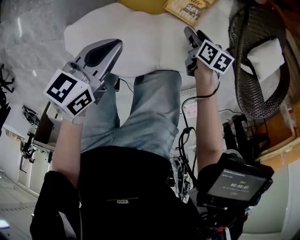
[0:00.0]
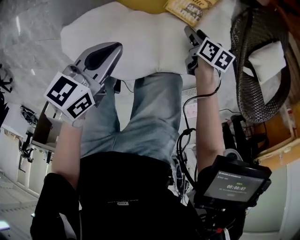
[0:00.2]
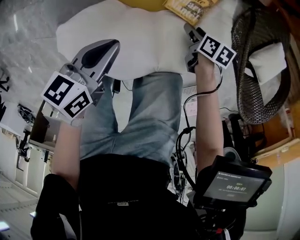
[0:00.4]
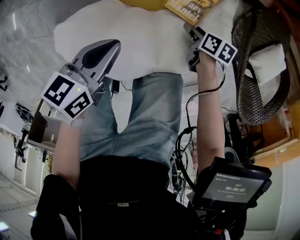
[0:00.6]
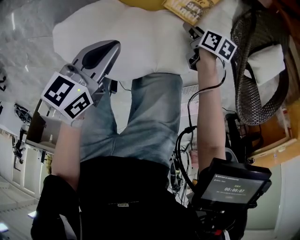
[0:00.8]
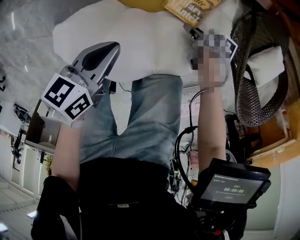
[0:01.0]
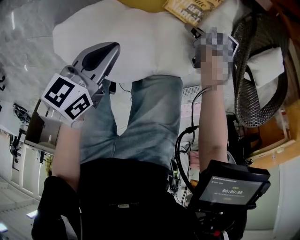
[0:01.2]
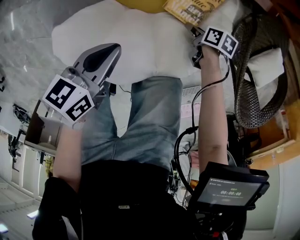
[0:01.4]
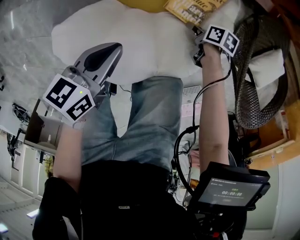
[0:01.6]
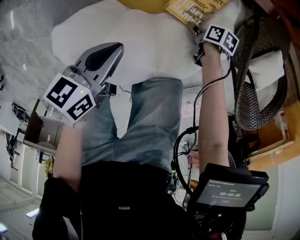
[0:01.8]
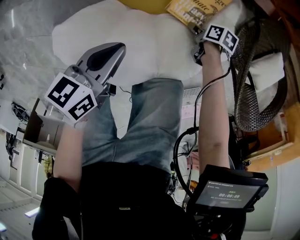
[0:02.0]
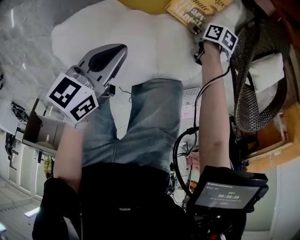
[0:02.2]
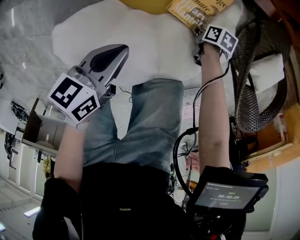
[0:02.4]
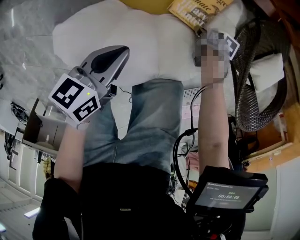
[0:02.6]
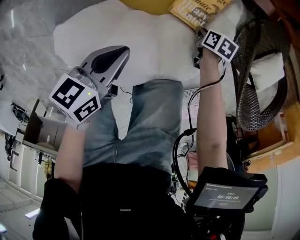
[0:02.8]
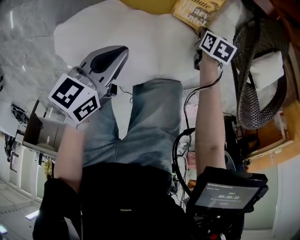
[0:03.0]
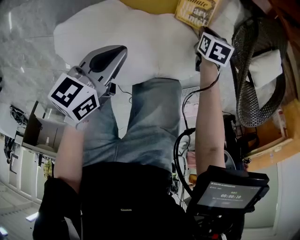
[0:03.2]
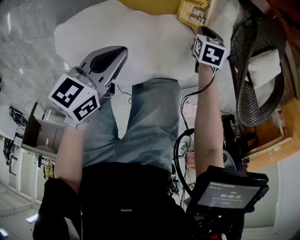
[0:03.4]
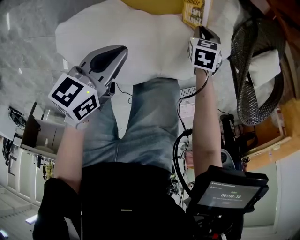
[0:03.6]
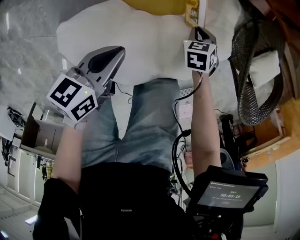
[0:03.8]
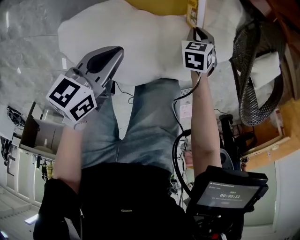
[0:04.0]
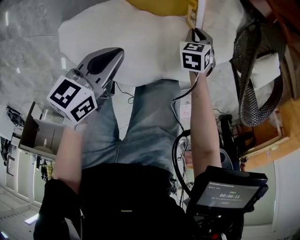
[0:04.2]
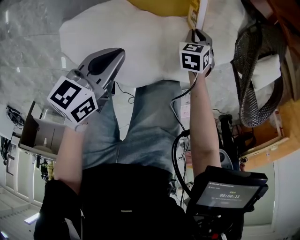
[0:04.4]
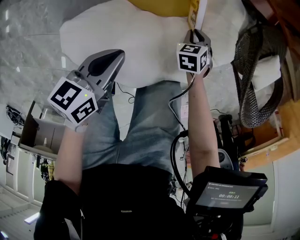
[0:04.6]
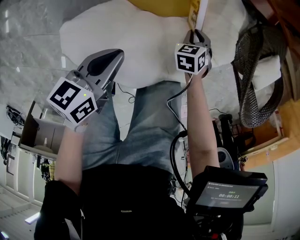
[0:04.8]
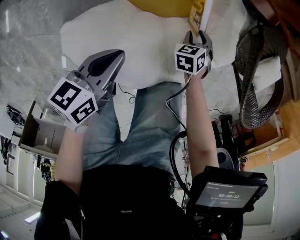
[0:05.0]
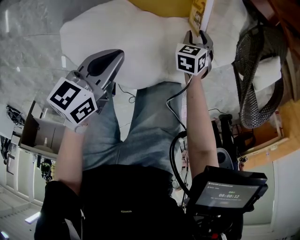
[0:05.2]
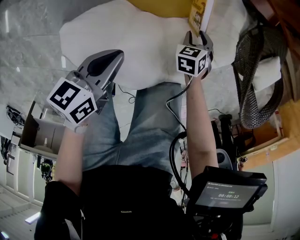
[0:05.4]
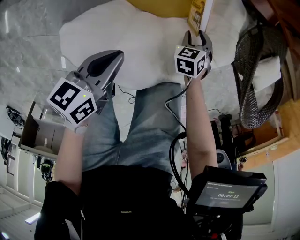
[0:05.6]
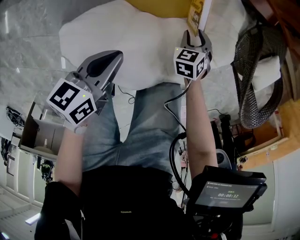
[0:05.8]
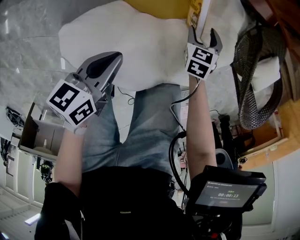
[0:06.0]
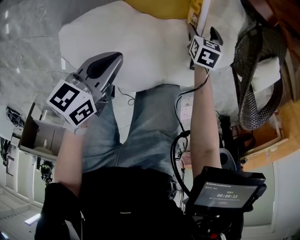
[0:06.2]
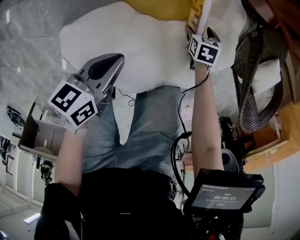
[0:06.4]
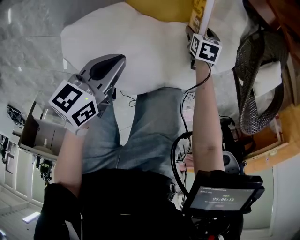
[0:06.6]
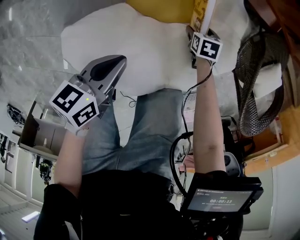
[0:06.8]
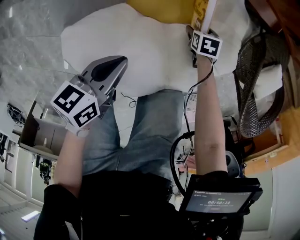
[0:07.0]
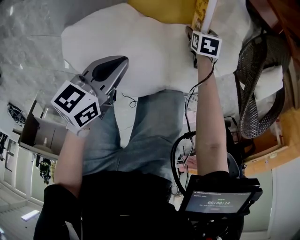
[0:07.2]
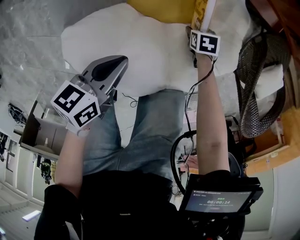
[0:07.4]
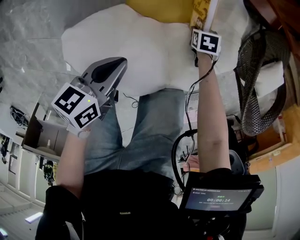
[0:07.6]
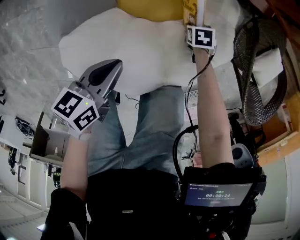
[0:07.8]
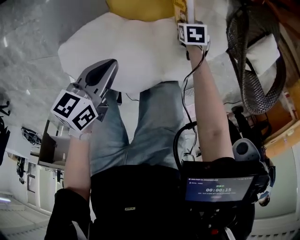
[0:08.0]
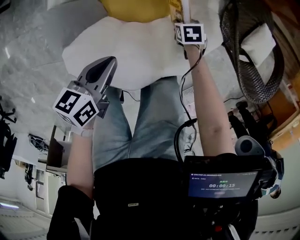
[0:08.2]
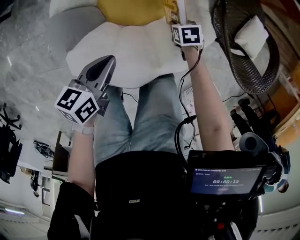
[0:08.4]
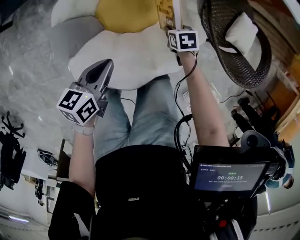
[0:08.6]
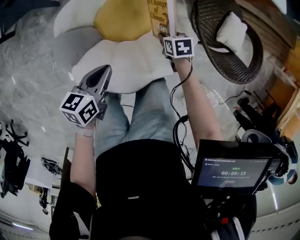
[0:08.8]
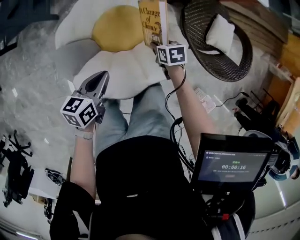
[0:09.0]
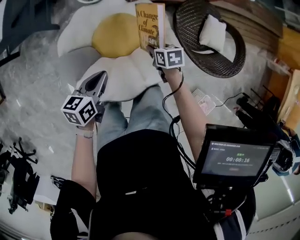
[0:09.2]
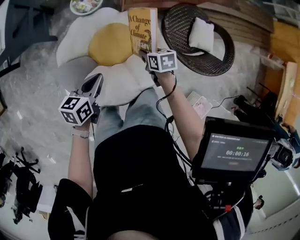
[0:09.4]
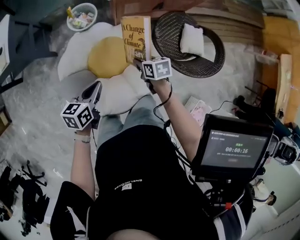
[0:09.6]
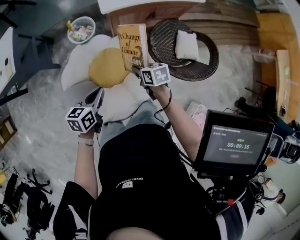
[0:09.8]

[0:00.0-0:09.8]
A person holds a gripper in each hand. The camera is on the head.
0:00.0 to 0:01.4: The left gripper shifts by about 5 cm. Meanwhile the right gripper is displaced downward by approximately 10 cm.
0:01.4 to 0:02.8: The right gripper closes its fingers.
0:02.8 to 0:04.2: The right gripper shifts by some 5 cm, and rotates around the line of its fingers by roughly 40 degrees, counterclockwise from behind.
0:04.2 to 0:05.6: There are only small adjustments of the grippers.
0:05.6 to 0:07.0: The right gripper goes approximately 5 cm downward, rotates approximately 20 degrees, and opens its fingers.
0:07.0 to 0:08.4: Both grippers travel together upward, about 10 cm. The right gripper closes.
0:08.4 to 0:09.8: The right gripper shifts about 35 cm upward, and rotates about 30 degrees, while the left gripper travels upward by some 20 cm.

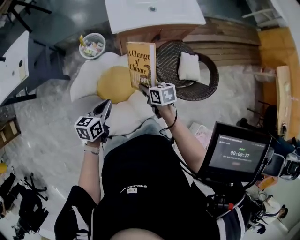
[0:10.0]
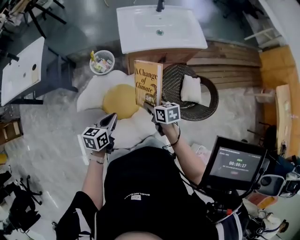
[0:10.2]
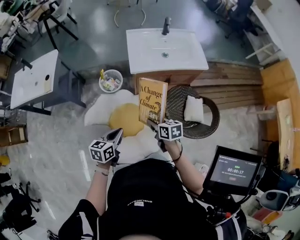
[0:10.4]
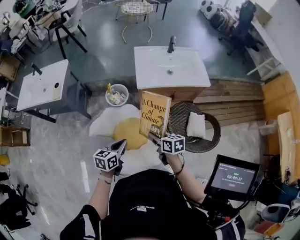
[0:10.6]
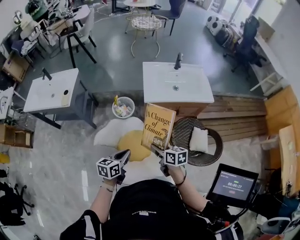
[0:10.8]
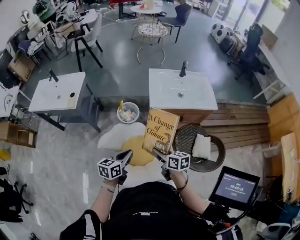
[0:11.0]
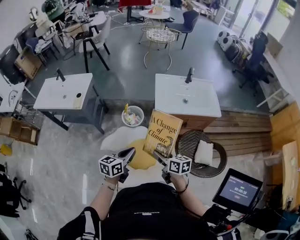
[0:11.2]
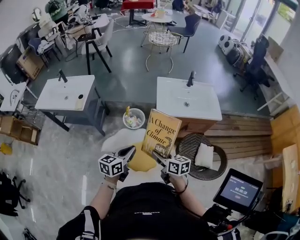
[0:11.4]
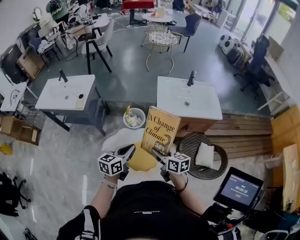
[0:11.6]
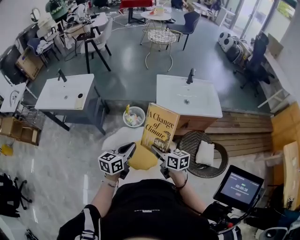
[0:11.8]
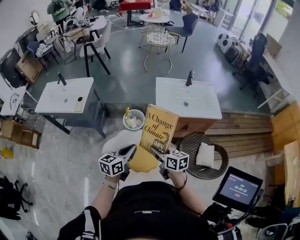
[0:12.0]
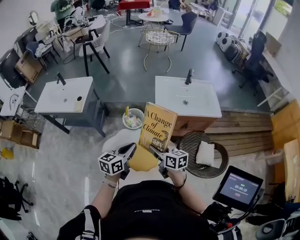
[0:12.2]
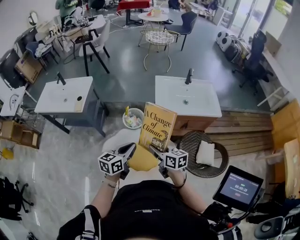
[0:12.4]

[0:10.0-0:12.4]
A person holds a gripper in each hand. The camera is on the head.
0:10.0 to 0:11.2: The right gripper heads upward and to the left, covering roughly 20 cm, and swivels some 30 degrees. The left gripper travels upward by roughly 15 cm.
0:11.2 to 0:12.4: The right gripper ends up about 5 cm from where it was.

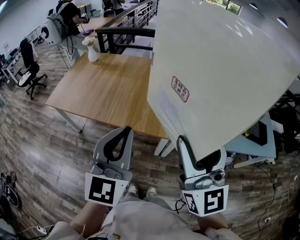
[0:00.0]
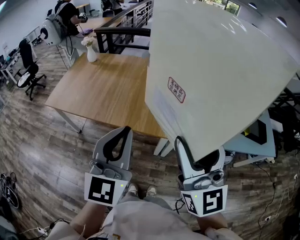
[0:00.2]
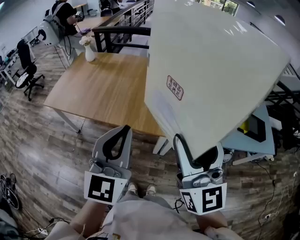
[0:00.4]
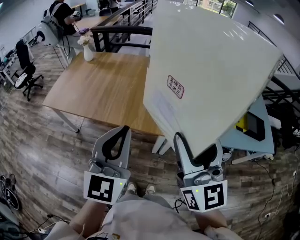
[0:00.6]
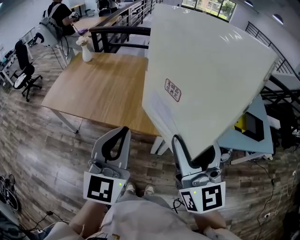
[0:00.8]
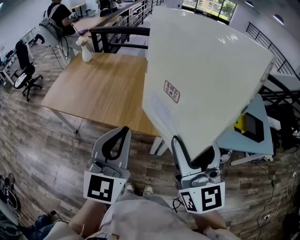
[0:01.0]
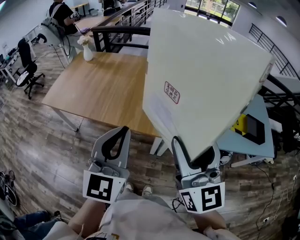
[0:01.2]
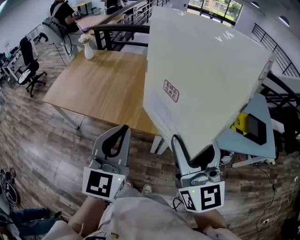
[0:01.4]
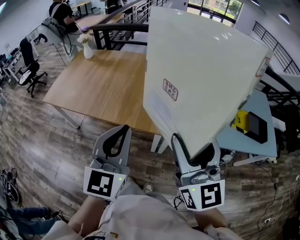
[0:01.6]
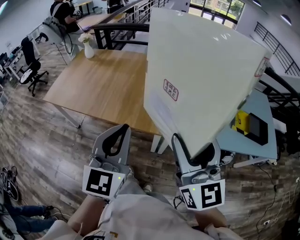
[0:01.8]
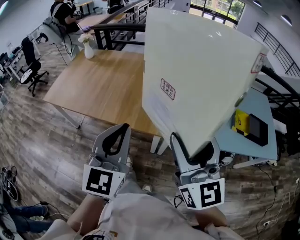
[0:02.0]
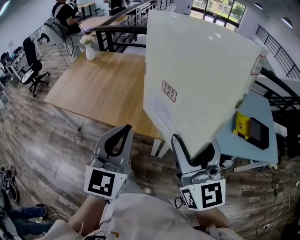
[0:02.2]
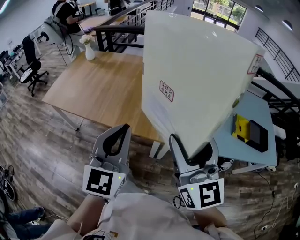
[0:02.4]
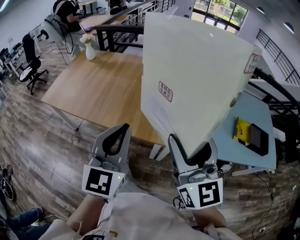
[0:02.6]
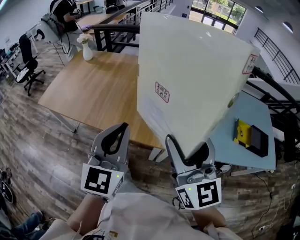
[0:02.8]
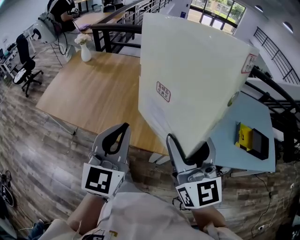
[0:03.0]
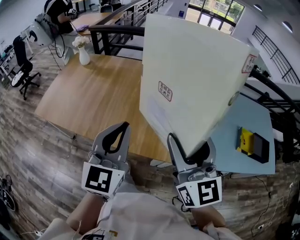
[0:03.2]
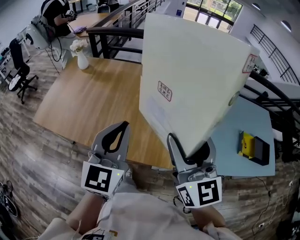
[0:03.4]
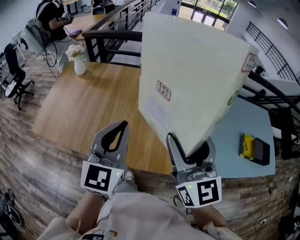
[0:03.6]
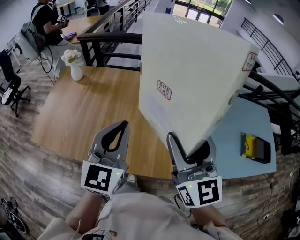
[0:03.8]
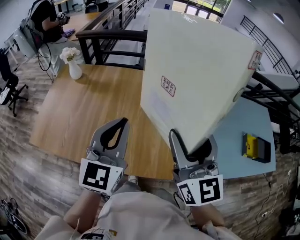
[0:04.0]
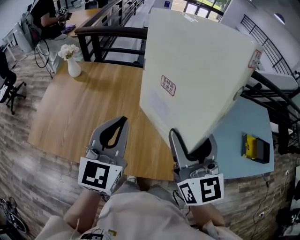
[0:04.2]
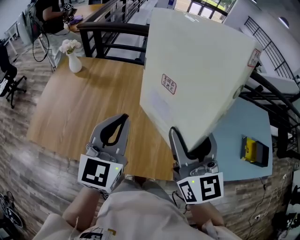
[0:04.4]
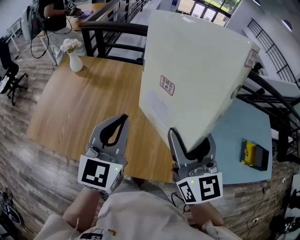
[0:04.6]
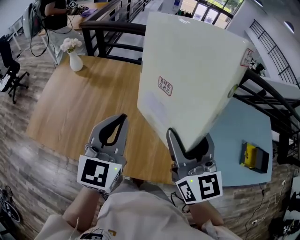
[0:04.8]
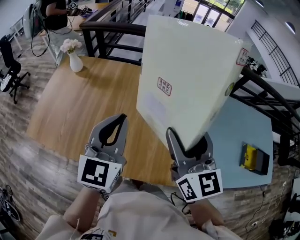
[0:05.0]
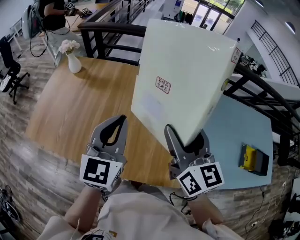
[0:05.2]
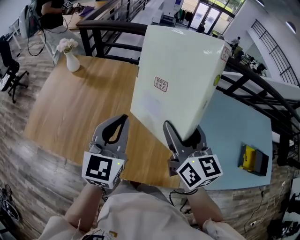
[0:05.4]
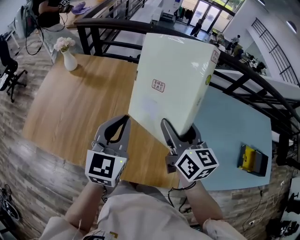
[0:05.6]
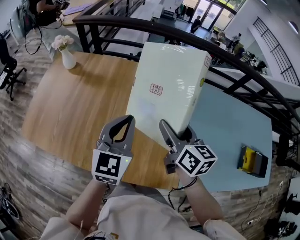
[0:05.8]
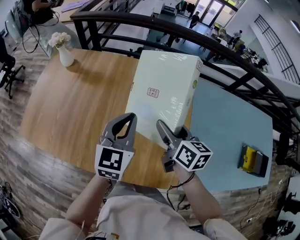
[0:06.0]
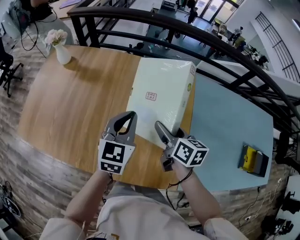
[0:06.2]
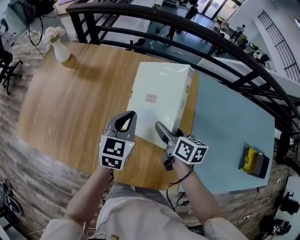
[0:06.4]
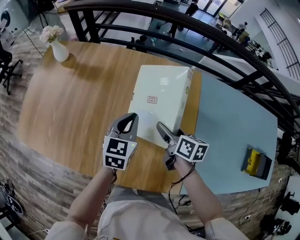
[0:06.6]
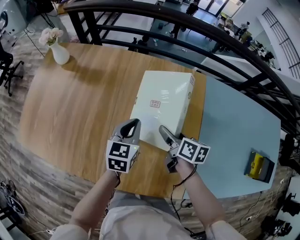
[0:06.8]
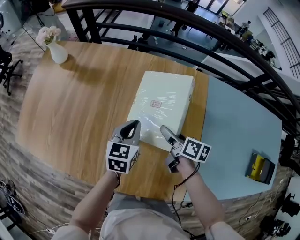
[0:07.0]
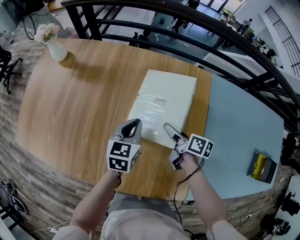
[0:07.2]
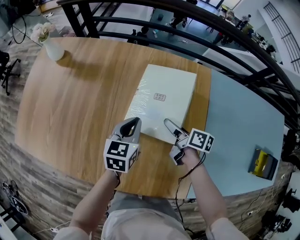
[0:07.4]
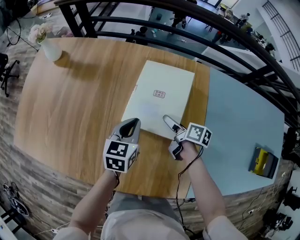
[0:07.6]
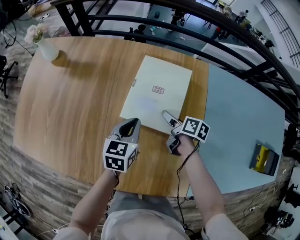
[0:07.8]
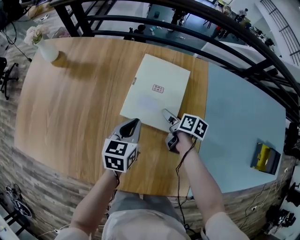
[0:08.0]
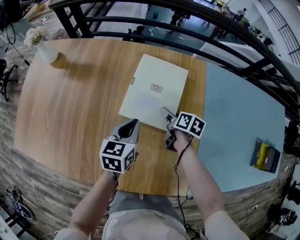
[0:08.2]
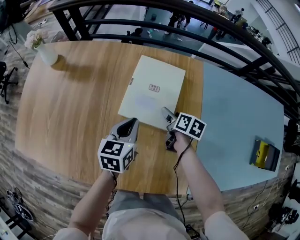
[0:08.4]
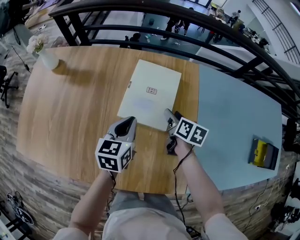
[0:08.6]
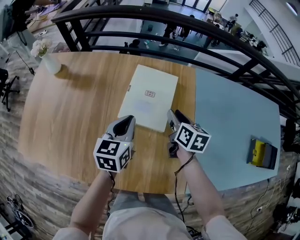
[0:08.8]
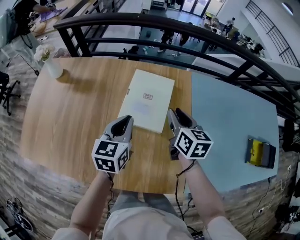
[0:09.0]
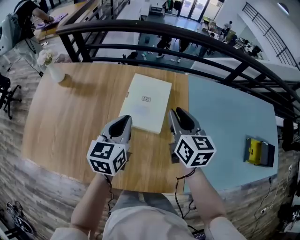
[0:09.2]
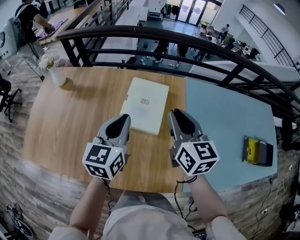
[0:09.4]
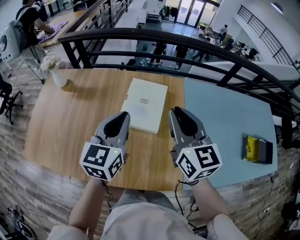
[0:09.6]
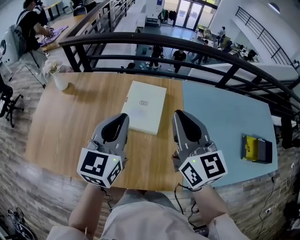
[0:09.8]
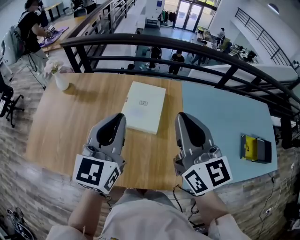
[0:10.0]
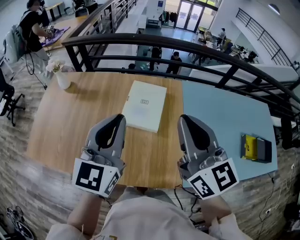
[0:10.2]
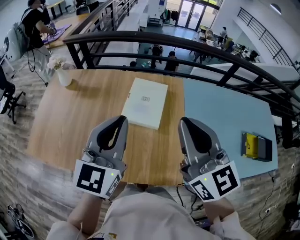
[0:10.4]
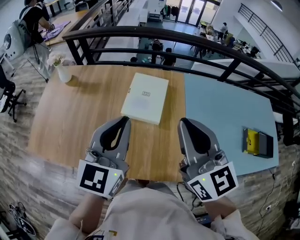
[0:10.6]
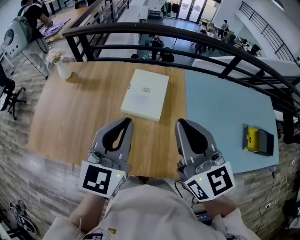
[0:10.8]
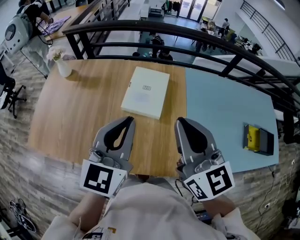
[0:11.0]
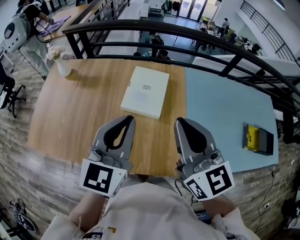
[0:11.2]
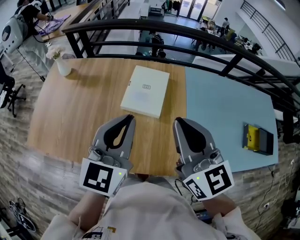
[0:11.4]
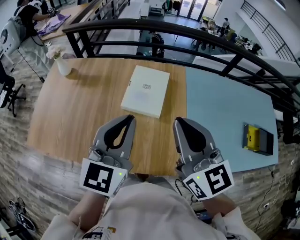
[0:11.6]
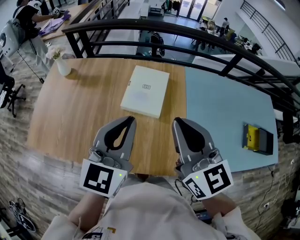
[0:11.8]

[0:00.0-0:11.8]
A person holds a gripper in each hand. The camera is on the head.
0:00.0 to 0:01.4: Both grippers move to the right, roughly 5 cm.
0:01.4 to 0:03.0: The two grippers go roughly 15 cm forward.
0:03.0 to 0:04.4: The two grippers go roughly 30 cm forward and to the left.
0:04.4 to 0:06.0: The right gripper goes approximately 25 cm downward and forward, and rotates approximately 40 degrees; the left gripper goes about 15 cm downward, forward and to the right.
0:06.0 to 0:07.4: The two grippers go roughly 25 cm downward and forward. The right gripper swivels about 30 degrees. Meanwhile the left gripper rotates some 20 degrees.
0:07.4 to 0:08.8: The left gripper shifts some 10 cm upward, while the right gripper moves upward and to the right, roughly 10 cm, changes its angle by approximately 30 degrees, and closes.
0:08.8 to 0:10.4: The two grippers go approximately 35 cm upward and backward. The left gripper rotates roughly 30 degrees, while the right gripper tips its fingers upward by approximately 30 degrees.
0:10.4 to 0:11.8: The grippers make only small movements.
